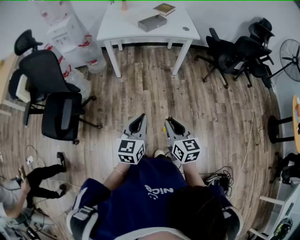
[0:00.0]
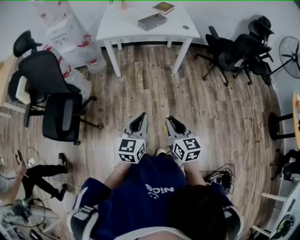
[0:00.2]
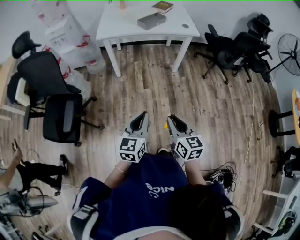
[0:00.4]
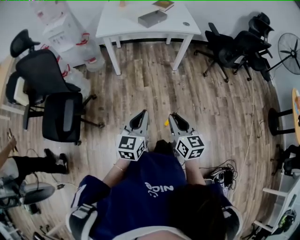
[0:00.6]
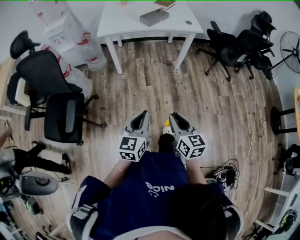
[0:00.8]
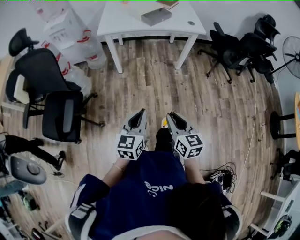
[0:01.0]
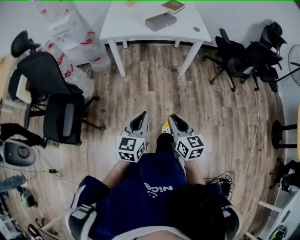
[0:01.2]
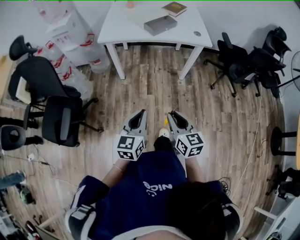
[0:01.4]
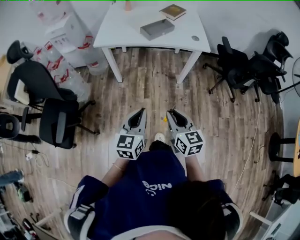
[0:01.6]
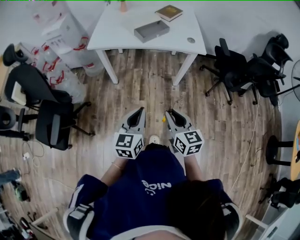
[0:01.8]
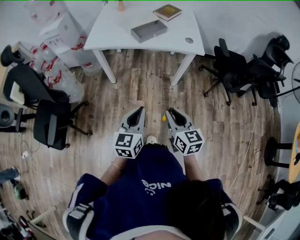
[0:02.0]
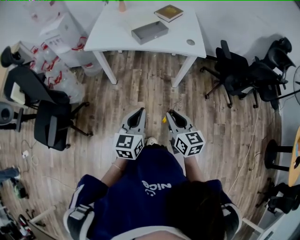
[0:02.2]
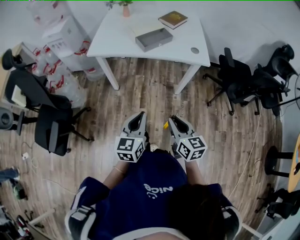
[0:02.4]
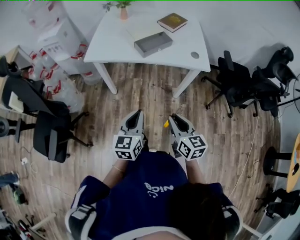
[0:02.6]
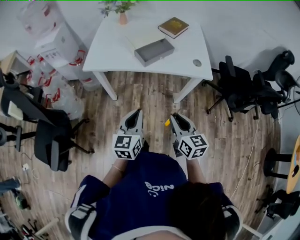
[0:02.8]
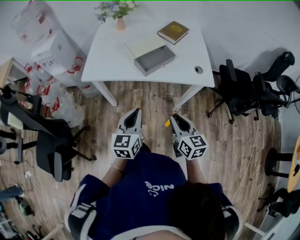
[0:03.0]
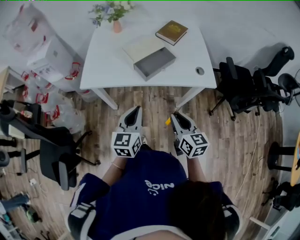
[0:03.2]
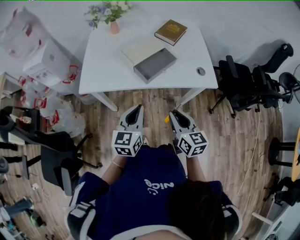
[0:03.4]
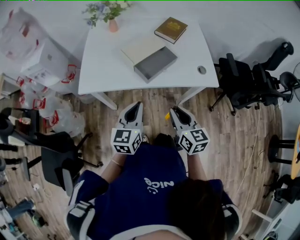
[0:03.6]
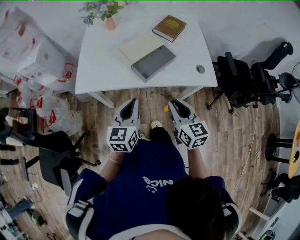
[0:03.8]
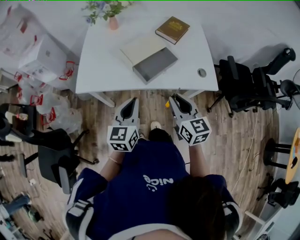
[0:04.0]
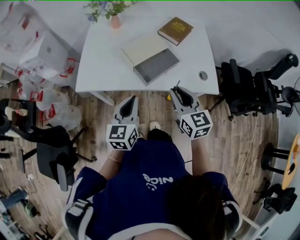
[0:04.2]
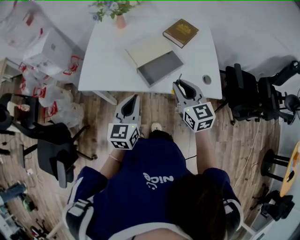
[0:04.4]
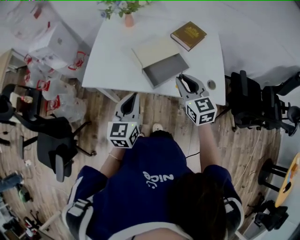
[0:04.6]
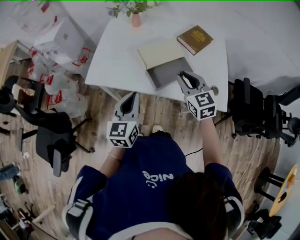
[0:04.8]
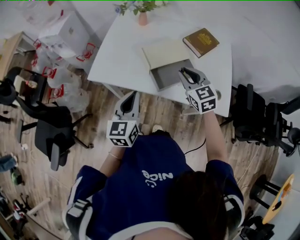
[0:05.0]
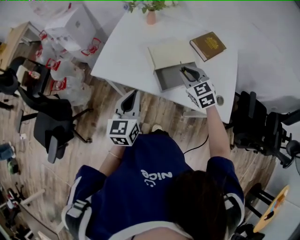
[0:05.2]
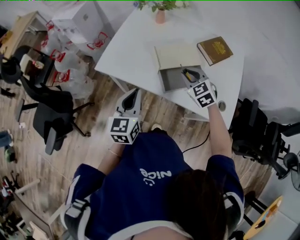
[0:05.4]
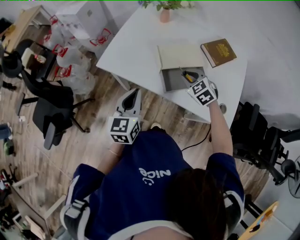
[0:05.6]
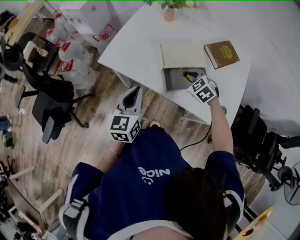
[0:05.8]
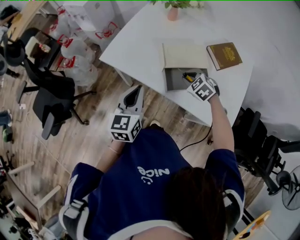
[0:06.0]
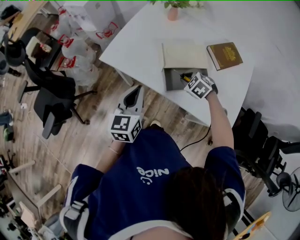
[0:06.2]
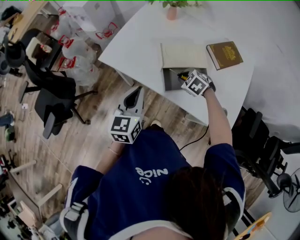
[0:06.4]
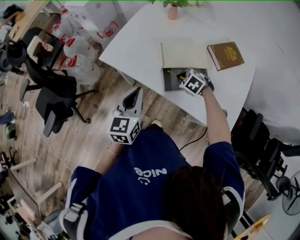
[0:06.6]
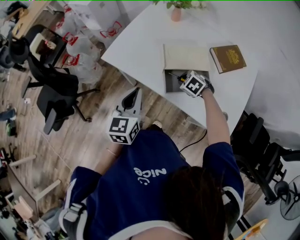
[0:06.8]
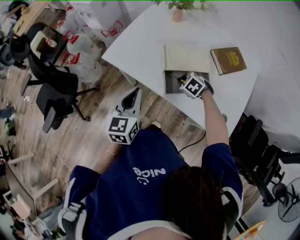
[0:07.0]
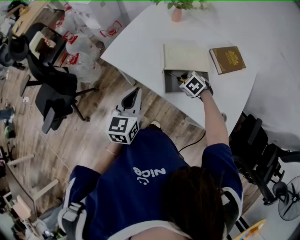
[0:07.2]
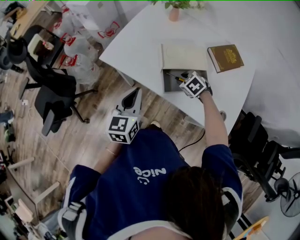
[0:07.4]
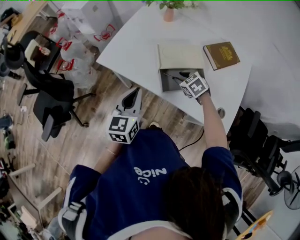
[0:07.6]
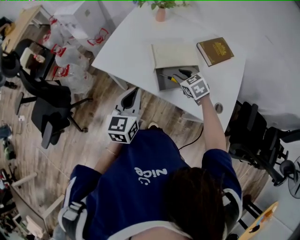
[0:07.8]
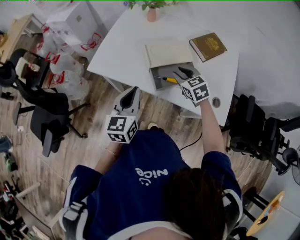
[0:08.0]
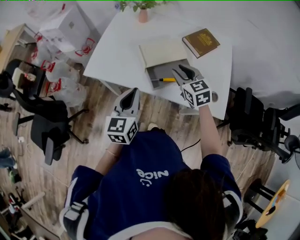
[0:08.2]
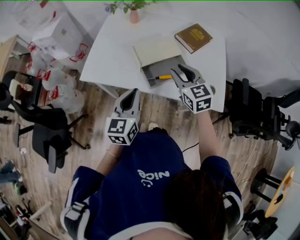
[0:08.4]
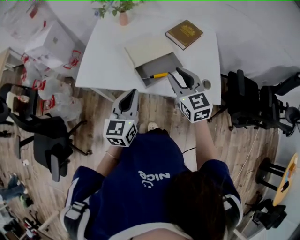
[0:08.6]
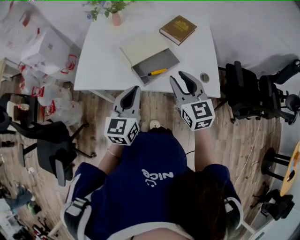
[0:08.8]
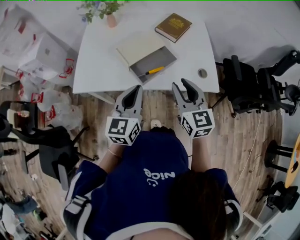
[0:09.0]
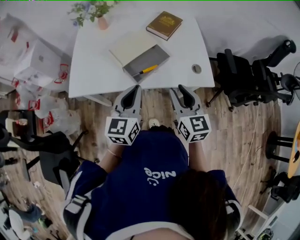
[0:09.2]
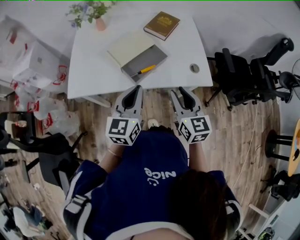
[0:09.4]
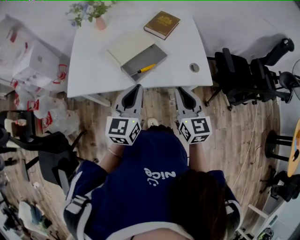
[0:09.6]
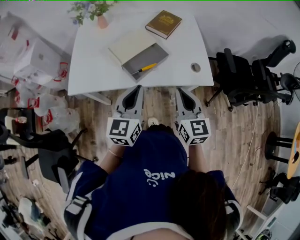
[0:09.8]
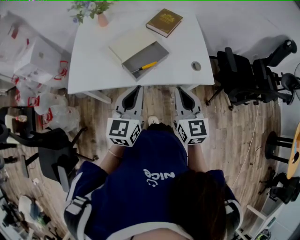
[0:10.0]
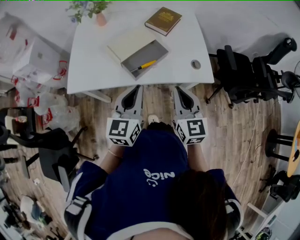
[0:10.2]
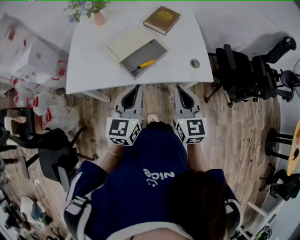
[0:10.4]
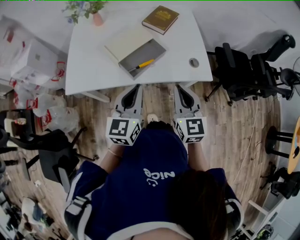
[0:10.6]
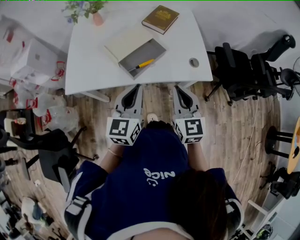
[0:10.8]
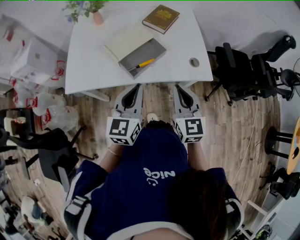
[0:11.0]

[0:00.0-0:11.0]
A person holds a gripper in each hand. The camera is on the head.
0:00.0 to 0:01.6: Both grippers move forward, approximately 25 cm.
0:01.6 to 0:03.2: Both grippers move forward, about 35 cm.
0:03.2 to 0:04.8: The right gripper travels forward by approximately 25 cm, and rotates roughly 30 degrees, while the left gripper is displaced forward by about 15 cm.
0:04.8 to 0:06.2: The right gripper travels downward and forward by roughly 20 cm, and points its fingers approximately 40 degrees further downward.
0:06.2 to 0:07.8: The right gripper changes its angle by approximately 30 degrees.
0:07.8 to 0:09.4: The right gripper shifts by approximately 30 cm, and angles its fingers upward, by approximately 30 degrees, while the left gripper ends up roughly 10 cm from where it was, and swivels about 30 degrees.
0:09.4 to 0:11.0: The right gripper closes its fingers.

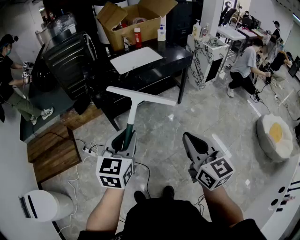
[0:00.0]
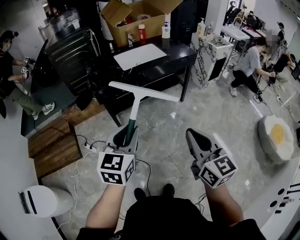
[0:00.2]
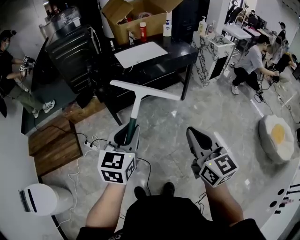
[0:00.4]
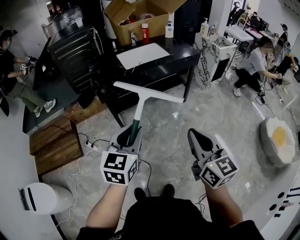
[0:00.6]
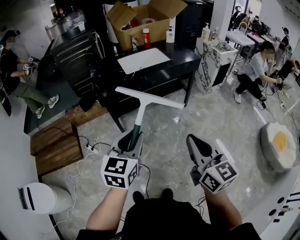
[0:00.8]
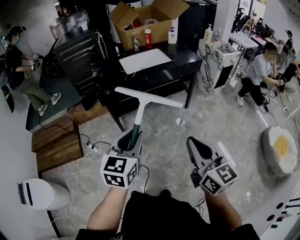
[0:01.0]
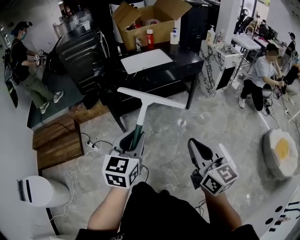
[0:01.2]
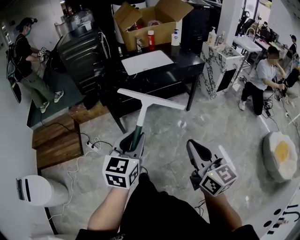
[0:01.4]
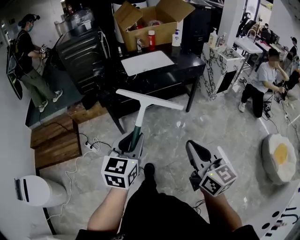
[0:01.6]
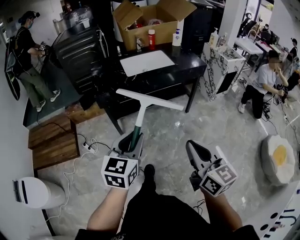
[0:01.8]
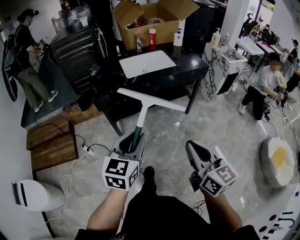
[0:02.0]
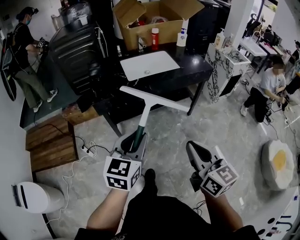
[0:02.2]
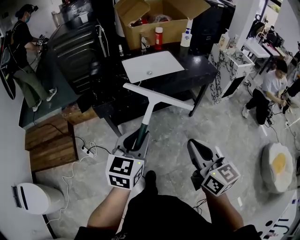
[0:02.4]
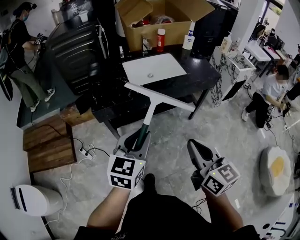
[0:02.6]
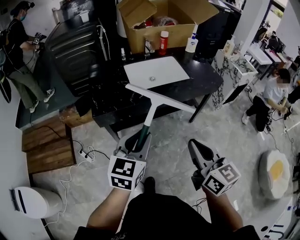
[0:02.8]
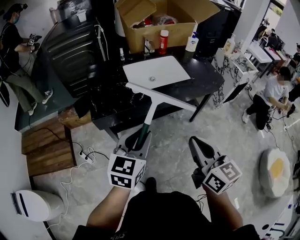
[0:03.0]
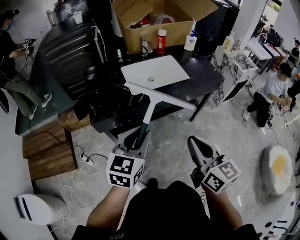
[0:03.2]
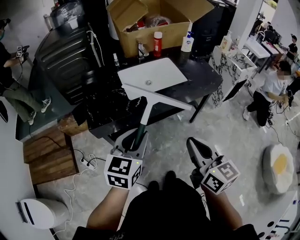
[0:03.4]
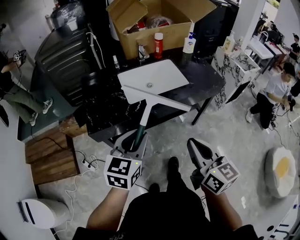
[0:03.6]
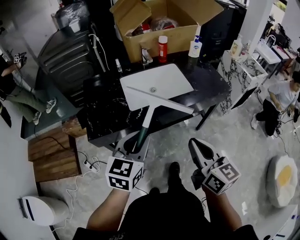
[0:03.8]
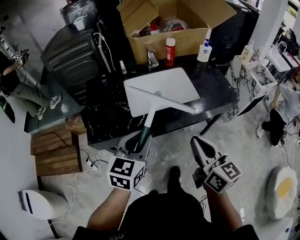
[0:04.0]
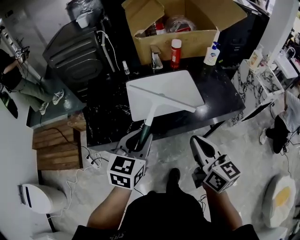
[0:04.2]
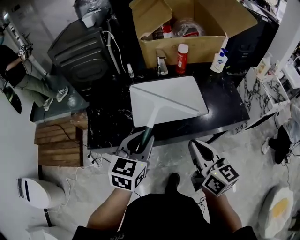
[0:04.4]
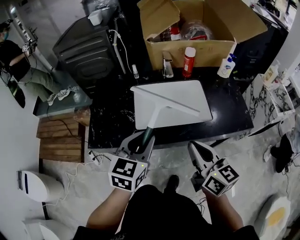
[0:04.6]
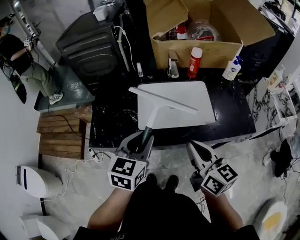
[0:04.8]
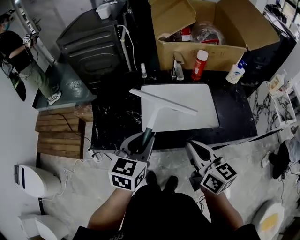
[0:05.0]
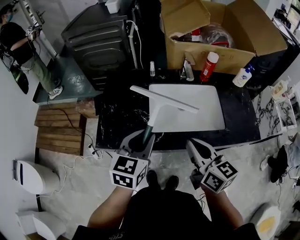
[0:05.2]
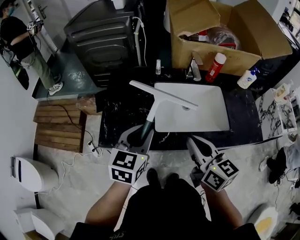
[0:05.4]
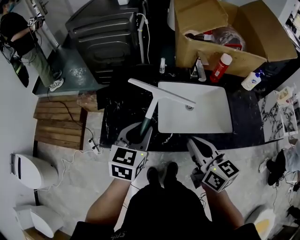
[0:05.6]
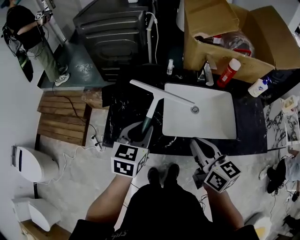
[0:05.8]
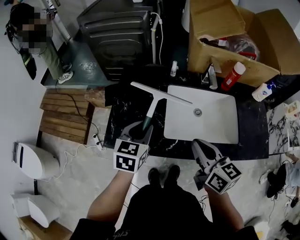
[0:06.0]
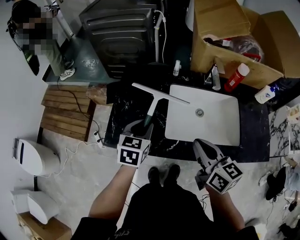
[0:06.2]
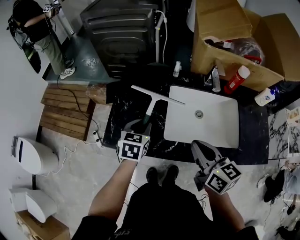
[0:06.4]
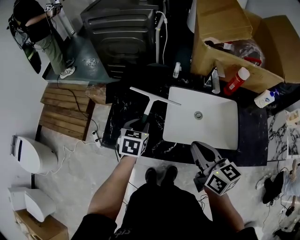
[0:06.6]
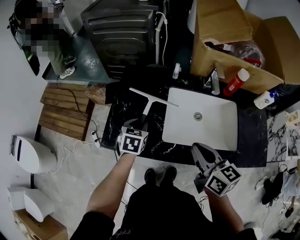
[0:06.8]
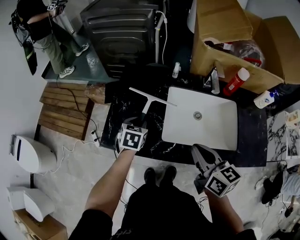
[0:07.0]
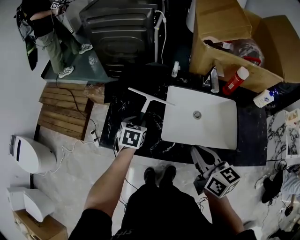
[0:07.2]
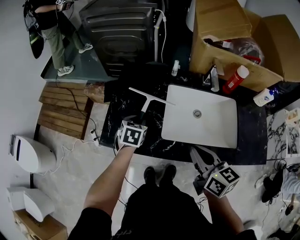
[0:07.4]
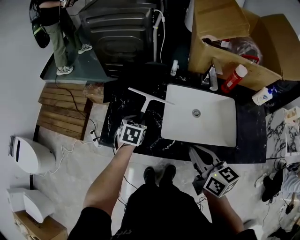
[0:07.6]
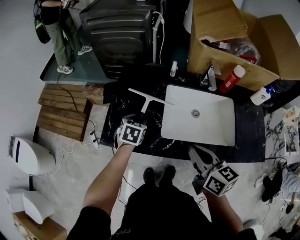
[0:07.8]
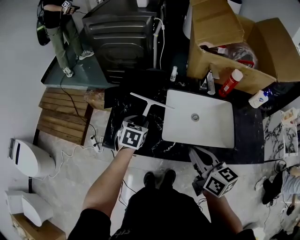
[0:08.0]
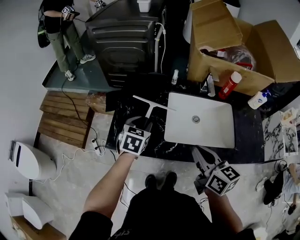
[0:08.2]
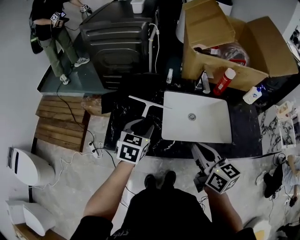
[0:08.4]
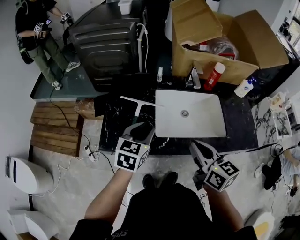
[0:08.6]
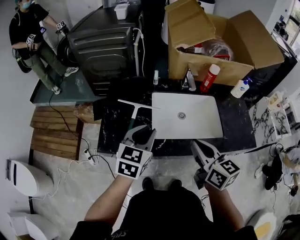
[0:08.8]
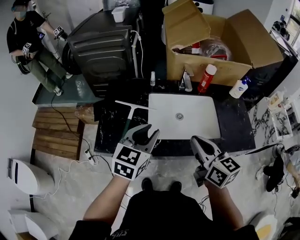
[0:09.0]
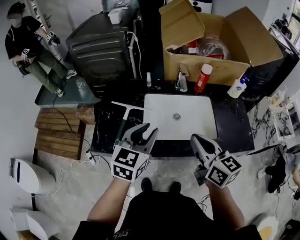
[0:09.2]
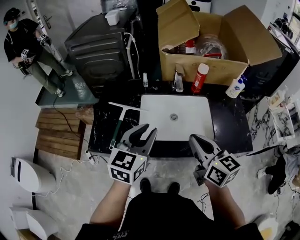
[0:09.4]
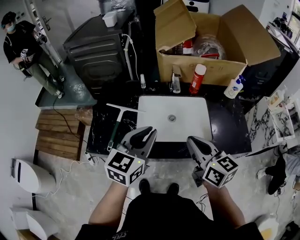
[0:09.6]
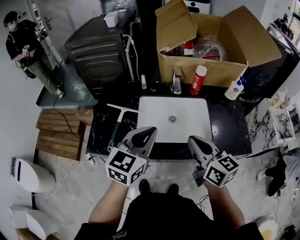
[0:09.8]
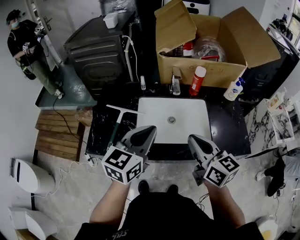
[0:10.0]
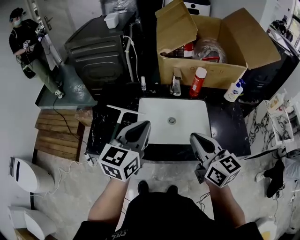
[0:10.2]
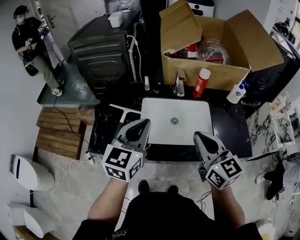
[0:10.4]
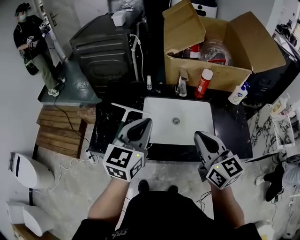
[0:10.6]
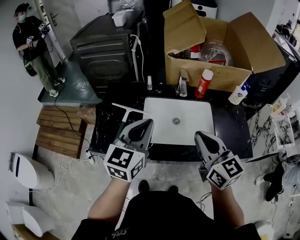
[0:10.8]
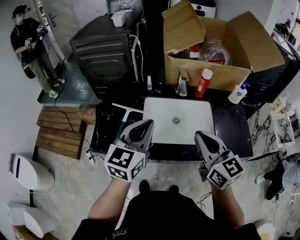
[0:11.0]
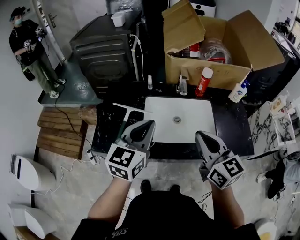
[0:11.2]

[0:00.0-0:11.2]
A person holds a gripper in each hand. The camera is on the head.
0:00.0 to 0:01.6: The right gripper changes place by some 5 cm. Meanwhile the left gripper travels to the right by some 5 cm.
0:01.6 to 0:03.2: Both grippers travel together forward, roughly 30 cm.
0:03.2 to 0:04.8: The grippers both shift forward by roughly 25 cm. The right gripper swivels approximately 20 degrees.
0:04.8 to 0:06.4: The right gripper goes about 15 cm forward and to the left, while the left gripper travels to the left, forward and downward by about 25 cm, and turns by about 20 degrees.
0:08.0 to 0:09.6: The left gripper heads upward, to the right and backward, covering approximately 30 cm, angles its fingers upward, by some 30 degrees, and closes its fingers; the right gripper is displaced to the right and upward by approximately 15 cm.
0:09.6 to 0:11.2: The grippers make only small movements.

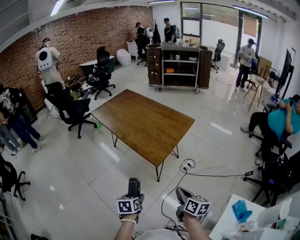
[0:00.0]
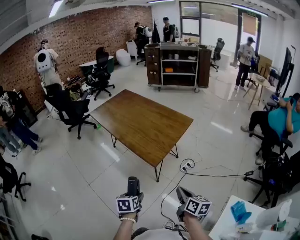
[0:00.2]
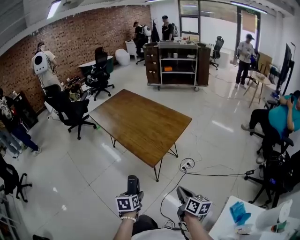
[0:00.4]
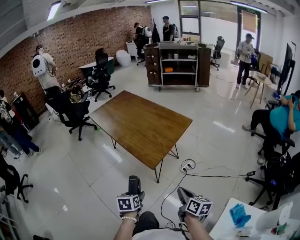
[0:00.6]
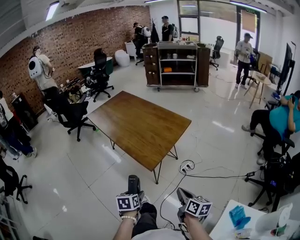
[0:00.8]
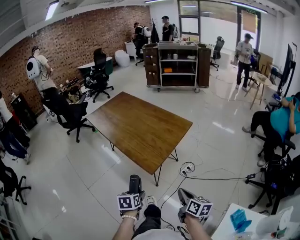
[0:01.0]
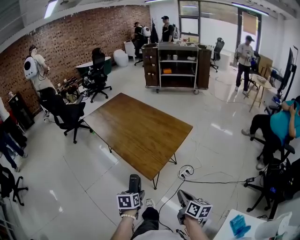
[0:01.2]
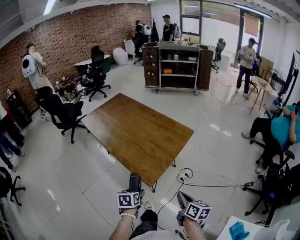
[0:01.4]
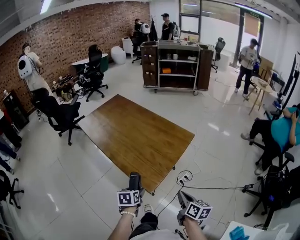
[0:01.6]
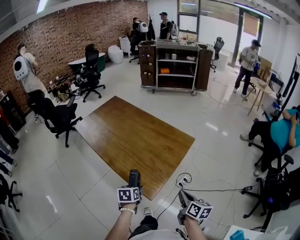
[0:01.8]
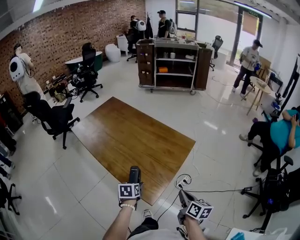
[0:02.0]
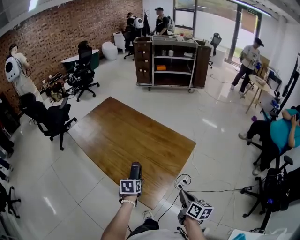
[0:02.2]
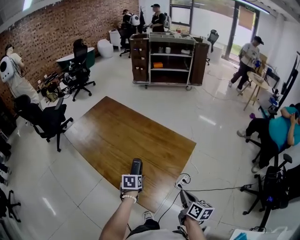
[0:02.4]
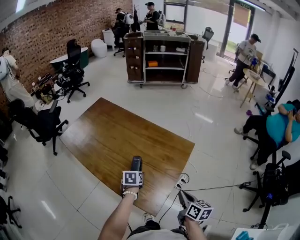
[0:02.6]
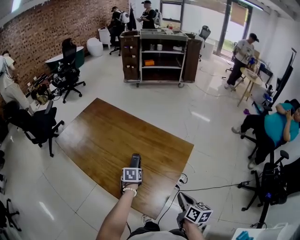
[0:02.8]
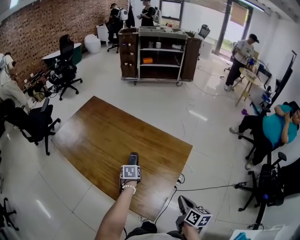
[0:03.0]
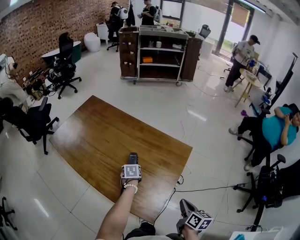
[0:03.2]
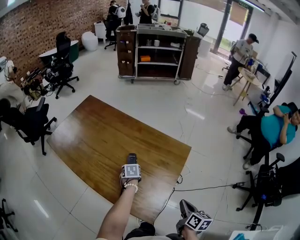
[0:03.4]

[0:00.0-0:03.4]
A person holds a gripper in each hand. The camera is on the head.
0:00.0 to 0:01.6: The left gripper is displaced forward by roughly 20 cm. Meanwhile the right gripper travels forward and to the right by some 15 cm.
0:01.6 to 0:03.4: The right gripper travels forward by about 10 cm; the left gripper is displaced forward by some 35 cm.
